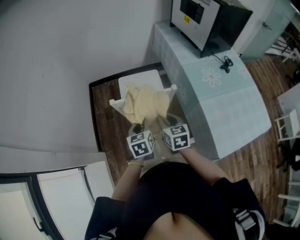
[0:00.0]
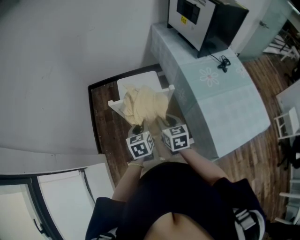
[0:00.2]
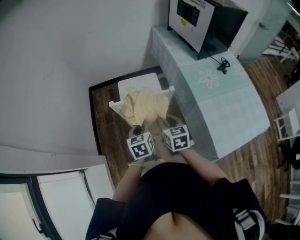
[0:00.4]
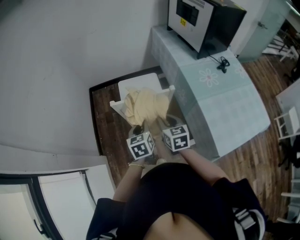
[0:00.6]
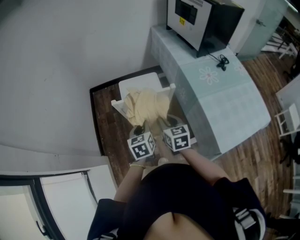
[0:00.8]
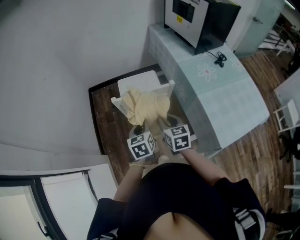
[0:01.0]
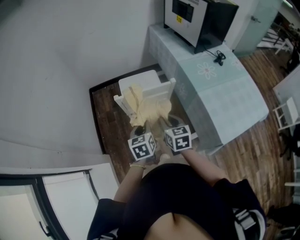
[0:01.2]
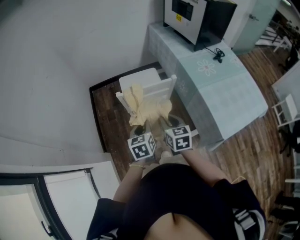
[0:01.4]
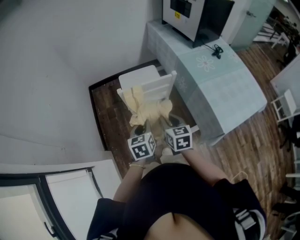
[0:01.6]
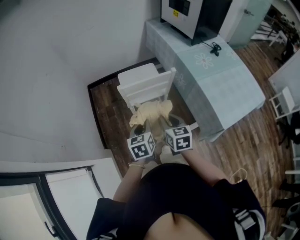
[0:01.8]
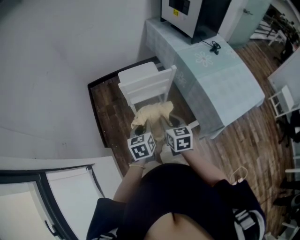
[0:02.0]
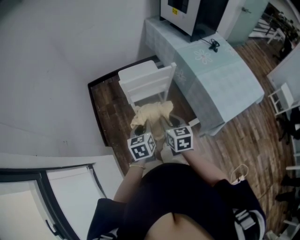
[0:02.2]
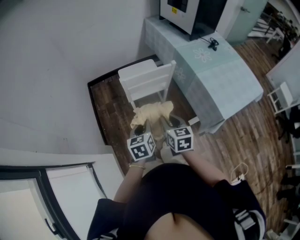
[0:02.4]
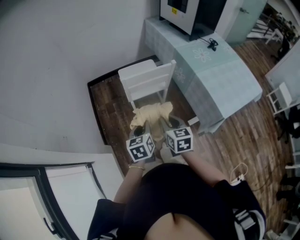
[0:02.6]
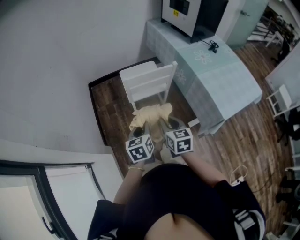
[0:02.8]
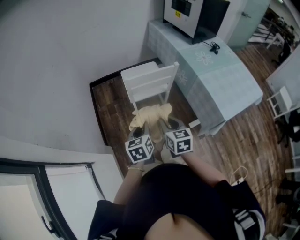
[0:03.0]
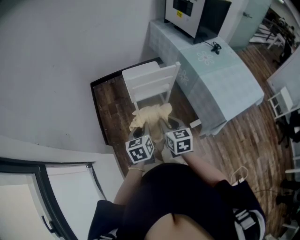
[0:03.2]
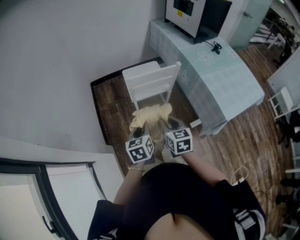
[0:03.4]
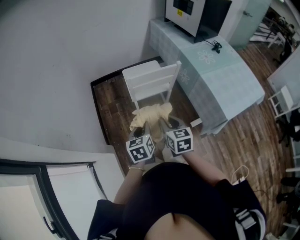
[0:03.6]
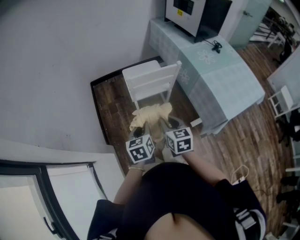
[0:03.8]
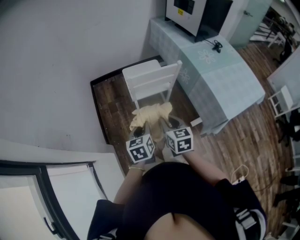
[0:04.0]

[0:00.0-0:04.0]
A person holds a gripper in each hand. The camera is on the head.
0:00.0 to 0:01.4: Both grippers travel together backward, some 10 cm.
0:01.4 to 0:02.6: Both grippers travel together backward, roughly 10 cm.
0:02.6 to 0:04.0: There are only small adjustments of the grippers.

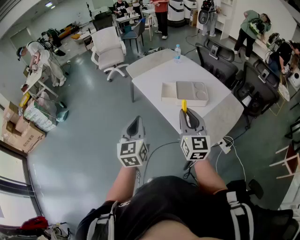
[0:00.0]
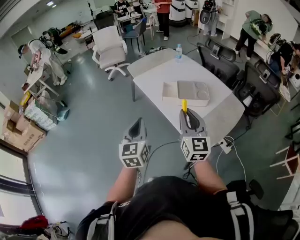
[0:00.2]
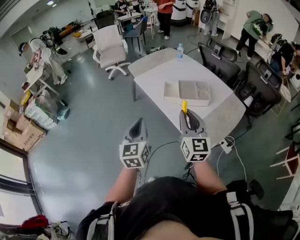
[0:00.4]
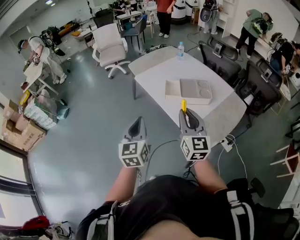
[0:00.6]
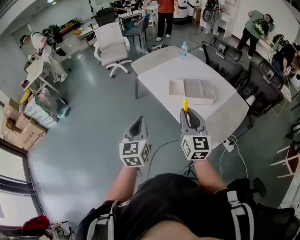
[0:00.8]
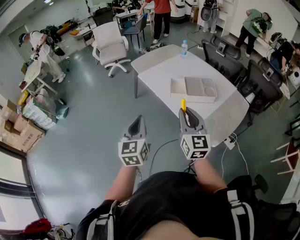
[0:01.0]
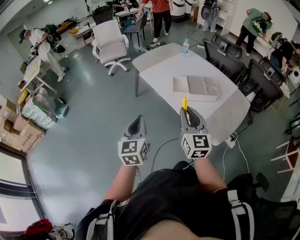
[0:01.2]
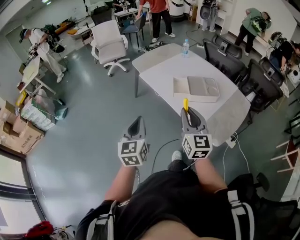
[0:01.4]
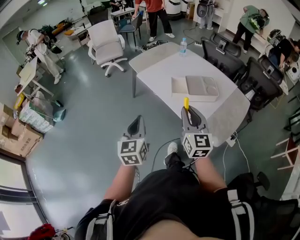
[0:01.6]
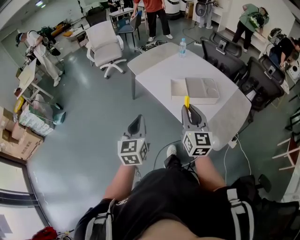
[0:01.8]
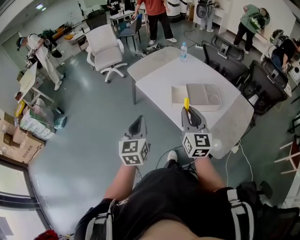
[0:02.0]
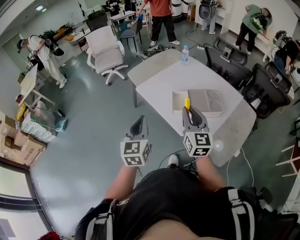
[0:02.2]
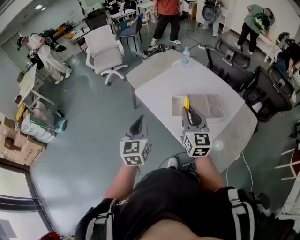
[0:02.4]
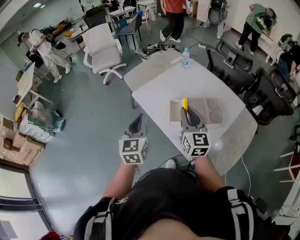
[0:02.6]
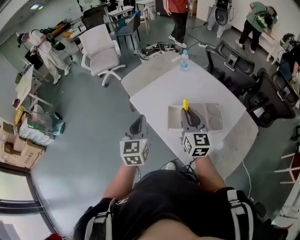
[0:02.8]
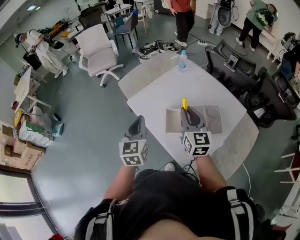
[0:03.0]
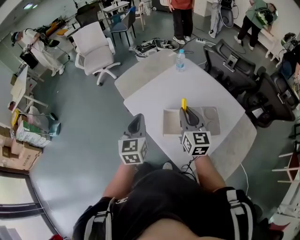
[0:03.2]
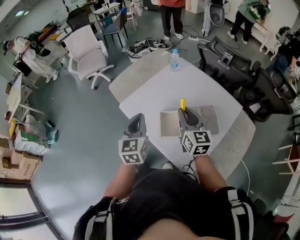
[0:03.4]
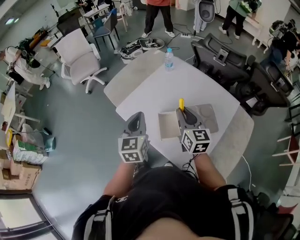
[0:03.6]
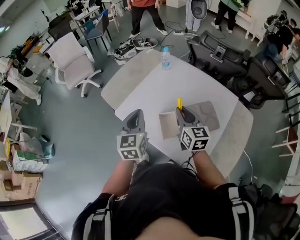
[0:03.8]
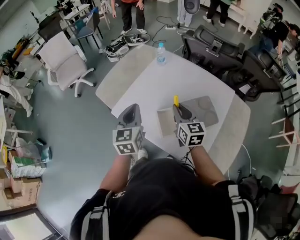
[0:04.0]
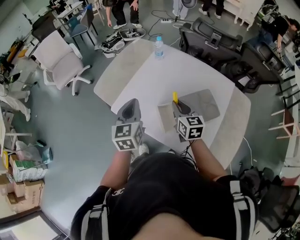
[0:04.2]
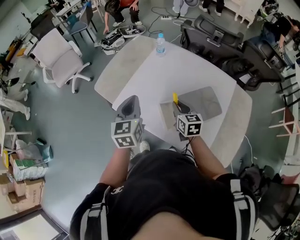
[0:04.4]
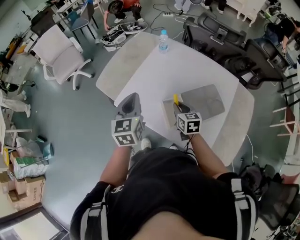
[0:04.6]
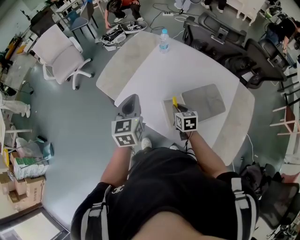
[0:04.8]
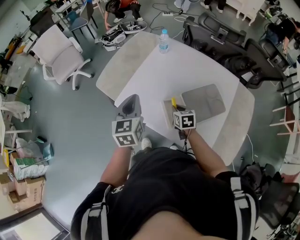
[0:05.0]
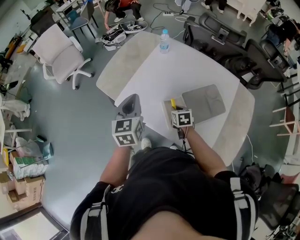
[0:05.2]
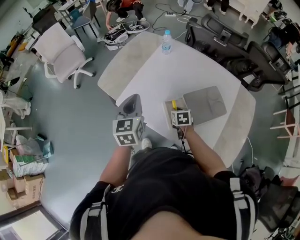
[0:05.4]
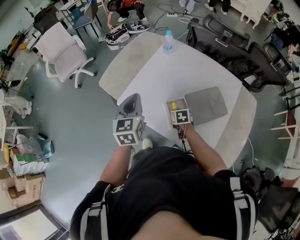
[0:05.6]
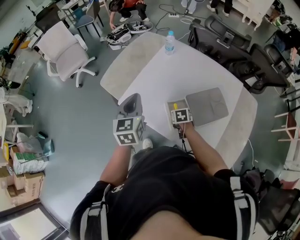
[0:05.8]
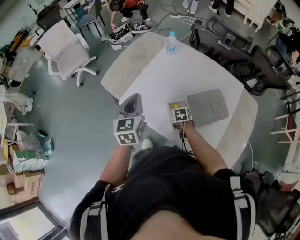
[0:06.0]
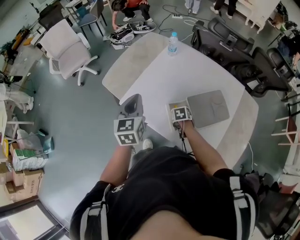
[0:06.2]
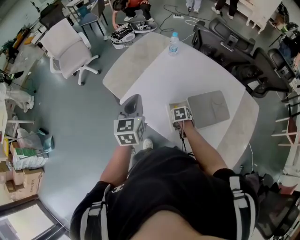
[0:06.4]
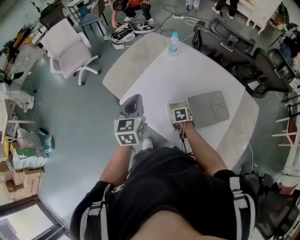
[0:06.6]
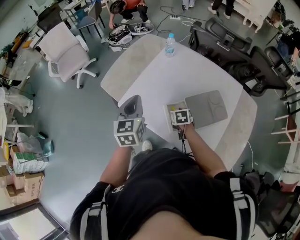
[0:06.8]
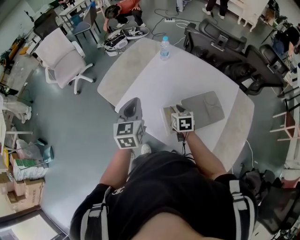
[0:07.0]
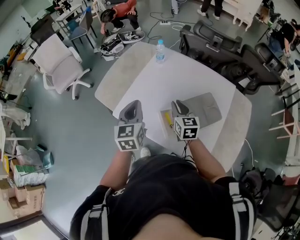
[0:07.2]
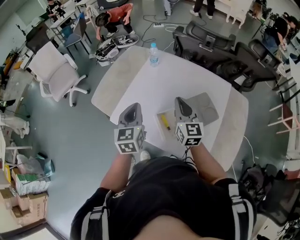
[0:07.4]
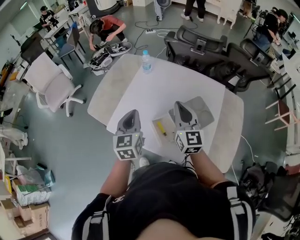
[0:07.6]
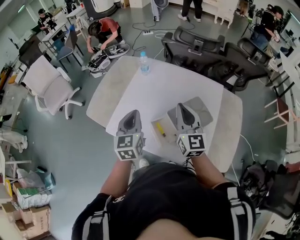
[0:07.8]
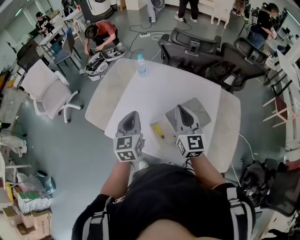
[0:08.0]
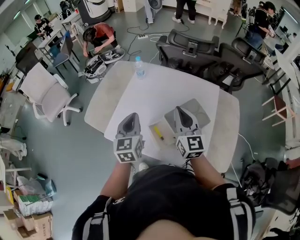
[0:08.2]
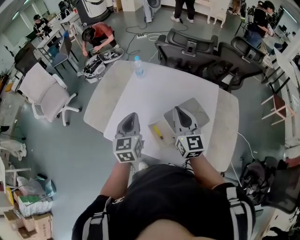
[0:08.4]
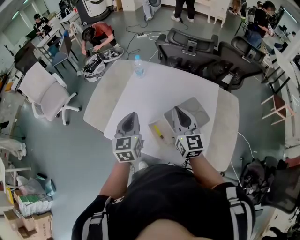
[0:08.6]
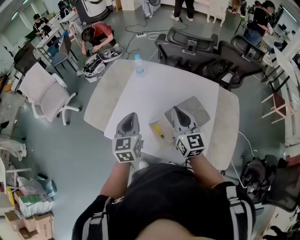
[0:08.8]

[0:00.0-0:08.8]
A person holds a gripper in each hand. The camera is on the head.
0:00.0 to 0:01.4: The grippers both shift to the left by about 10 cm.
0:01.4 to 0:03.0: Both grippers move forward, about 35 cm.
0:03.0 to 0:04.4: The left gripper shifts about 15 cm forward. The right gripper goes some 15 cm downward and forward, and rotates some 30 degrees.
0:04.4 to 0:05.8: The right gripper travels downward by about 15 cm, and tips its fingers downward by some 30 degrees.
0:05.8 to 0:07.4: The left gripper is displaced to the right by roughly 5 cm, while the right gripper is displaced upward by roughly 30 cm, tilts its fingers some 50 degrees upward, and opens and closes again.
0:07.4 to 0:08.8: The right gripper ends up roughly 5 cm from where it was.

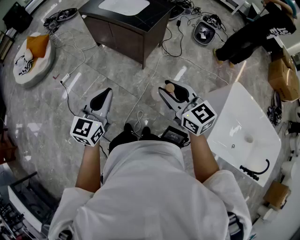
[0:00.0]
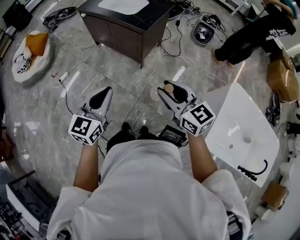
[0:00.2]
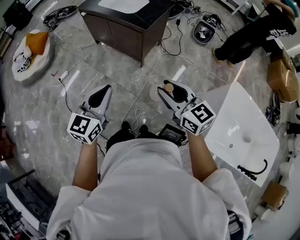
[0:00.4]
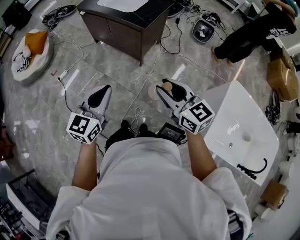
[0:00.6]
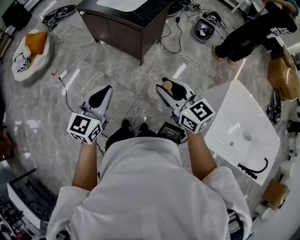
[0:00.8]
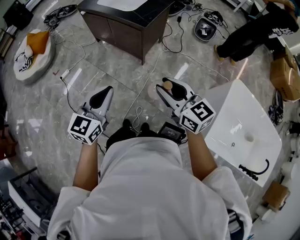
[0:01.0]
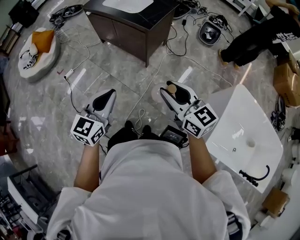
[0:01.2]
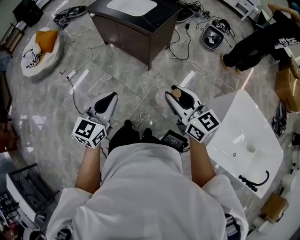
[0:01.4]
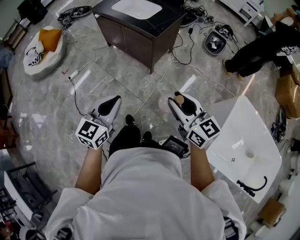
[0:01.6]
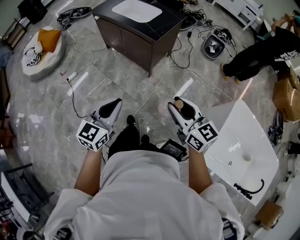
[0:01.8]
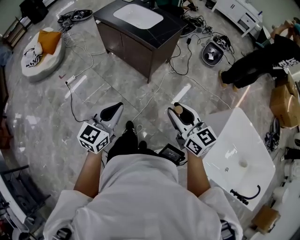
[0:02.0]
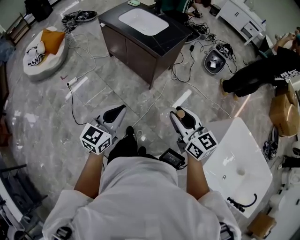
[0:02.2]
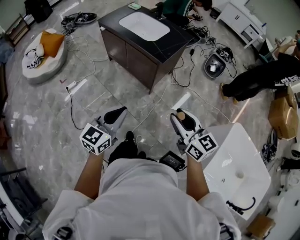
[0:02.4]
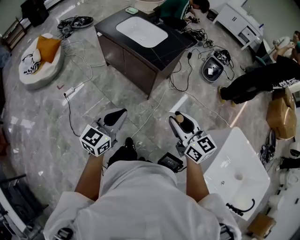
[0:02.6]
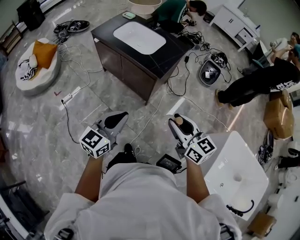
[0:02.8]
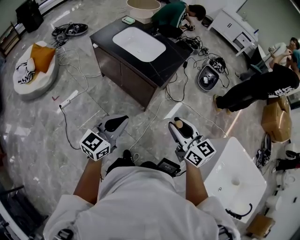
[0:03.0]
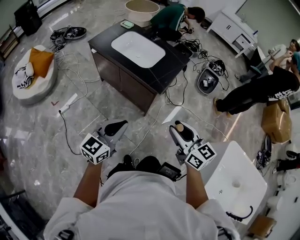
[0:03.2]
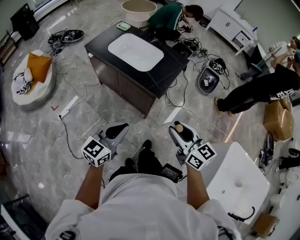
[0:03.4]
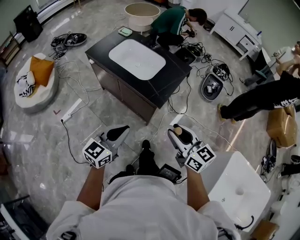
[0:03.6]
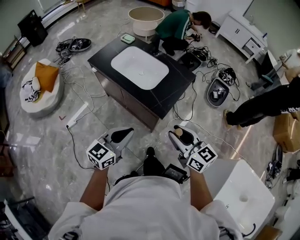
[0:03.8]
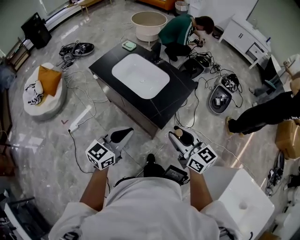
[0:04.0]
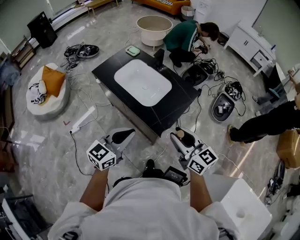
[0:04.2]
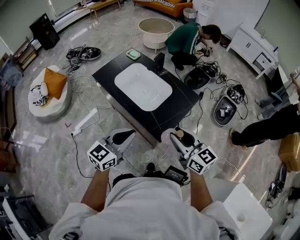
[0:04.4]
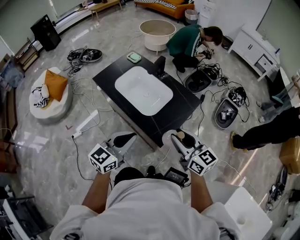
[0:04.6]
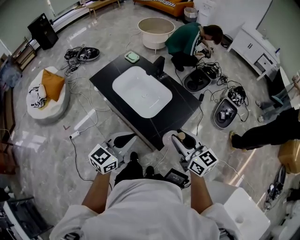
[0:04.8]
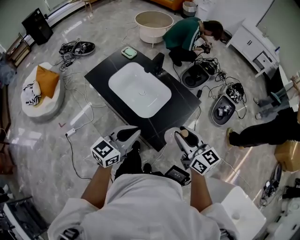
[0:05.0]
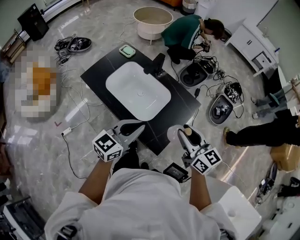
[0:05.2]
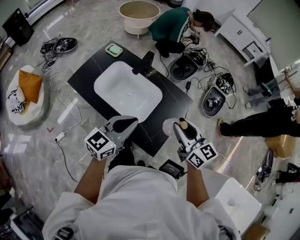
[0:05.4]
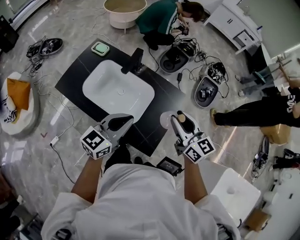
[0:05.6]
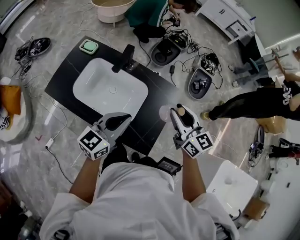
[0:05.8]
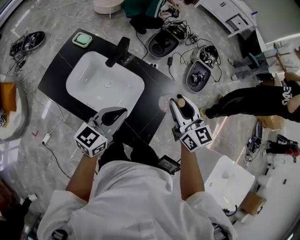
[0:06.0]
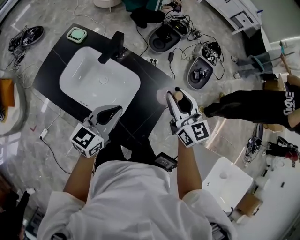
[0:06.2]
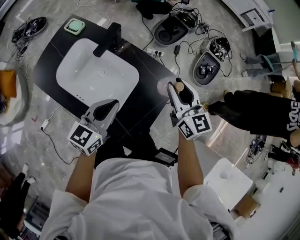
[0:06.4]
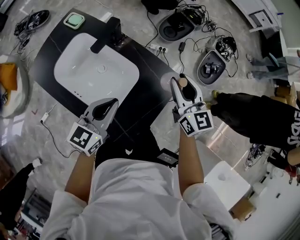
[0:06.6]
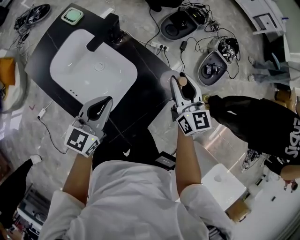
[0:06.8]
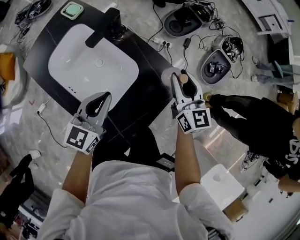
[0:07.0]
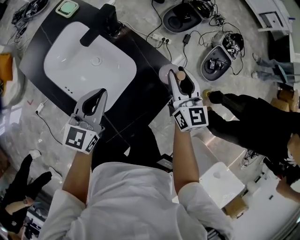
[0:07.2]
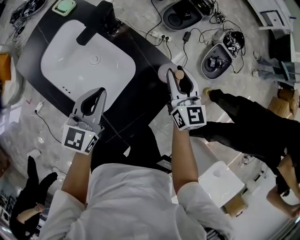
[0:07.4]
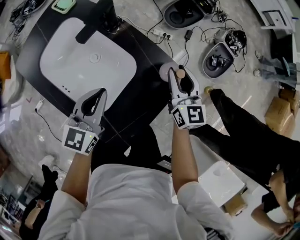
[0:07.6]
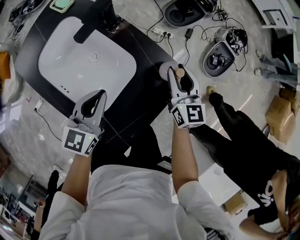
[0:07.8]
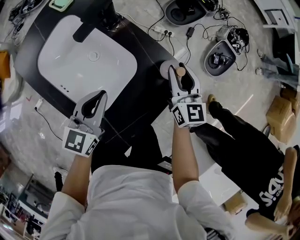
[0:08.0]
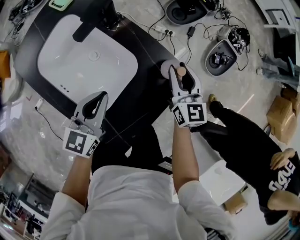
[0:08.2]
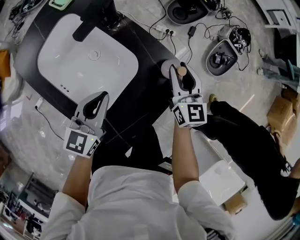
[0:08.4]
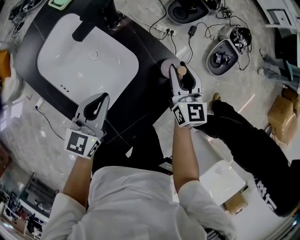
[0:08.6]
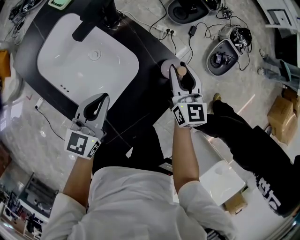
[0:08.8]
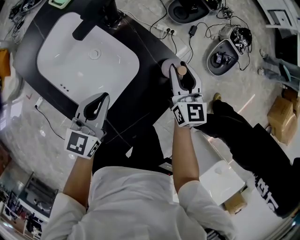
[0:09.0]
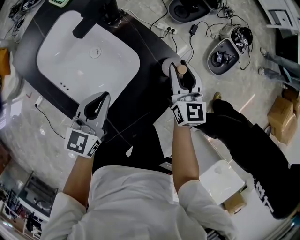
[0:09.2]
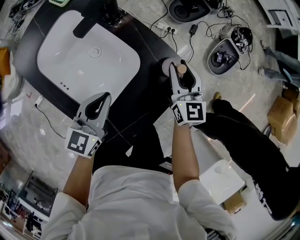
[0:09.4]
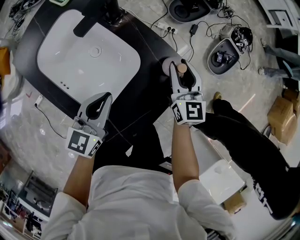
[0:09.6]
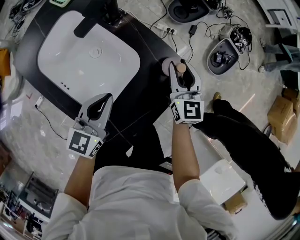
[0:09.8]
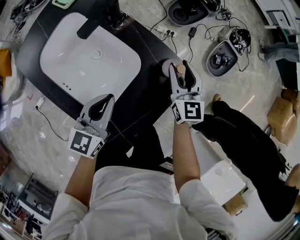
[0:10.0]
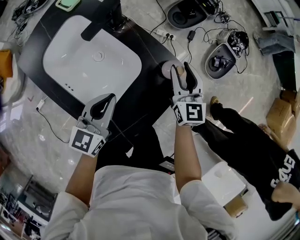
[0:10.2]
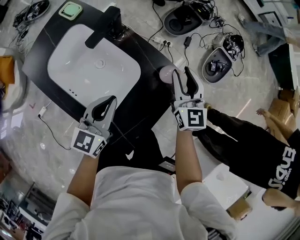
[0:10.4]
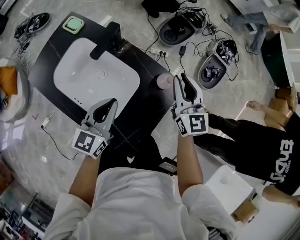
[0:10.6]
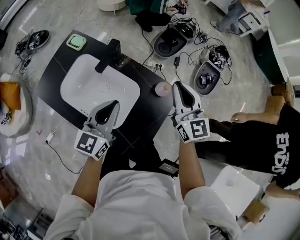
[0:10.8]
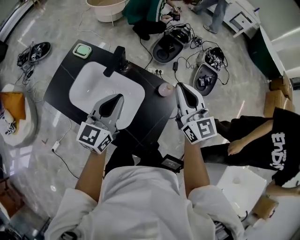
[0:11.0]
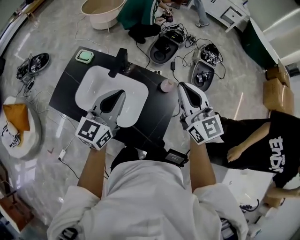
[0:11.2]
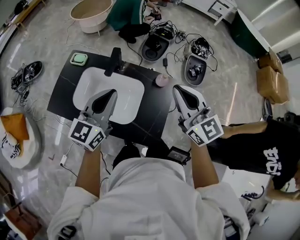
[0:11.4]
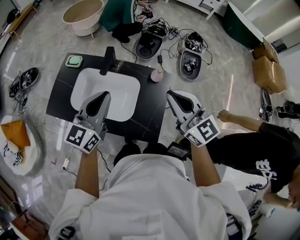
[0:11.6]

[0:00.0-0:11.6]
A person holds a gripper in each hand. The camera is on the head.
0:00.0 to 0:01.4: There are only small adjustments of the grippers.
0:01.4 to 0:02.8: Both grippers travel together forward, roughly 20 cm.
0:02.8 to 0:04.4: Both grippers travel together forward, approximately 35 cm.
0:04.4 to 0:05.8: Both grippers travel together forward, some 25 cm. The right gripper turns by roughly 30 degrees; the left gripper swivels about 20 degrees.
0:05.8 to 0:07.2: The left gripper travels downward and forward by approximately 20 cm, and changes its angle by some 30 degrees. Meanwhile the right gripper travels forward and downward by some 25 cm.
0:07.2 to 0:08.8: Both grippers travel together downward, about 5 cm.
0:08.8 to 0:10.2: The grippers move only a little.
0:10.2 to 0:11.6: The left gripper travels upward by roughly 25 cm, and turns by roughly 30 degrees; the right gripper goes roughly 40 cm upward and backward, and closes up.
